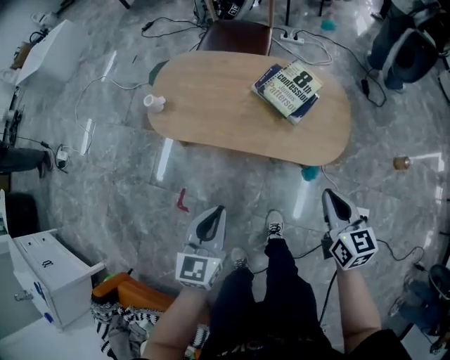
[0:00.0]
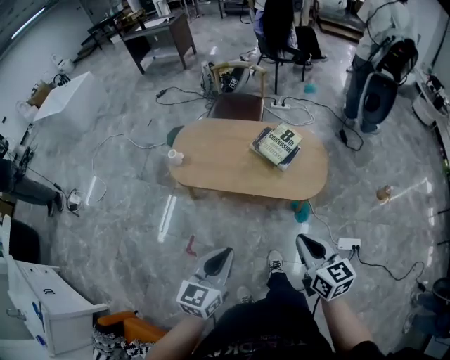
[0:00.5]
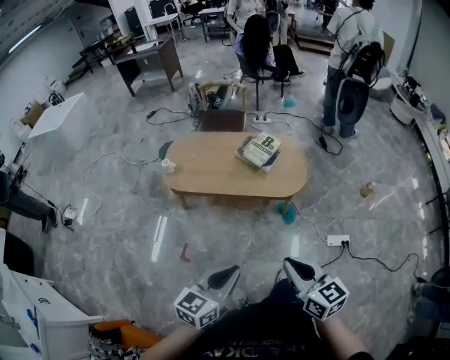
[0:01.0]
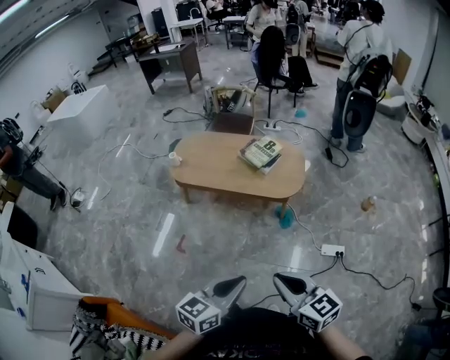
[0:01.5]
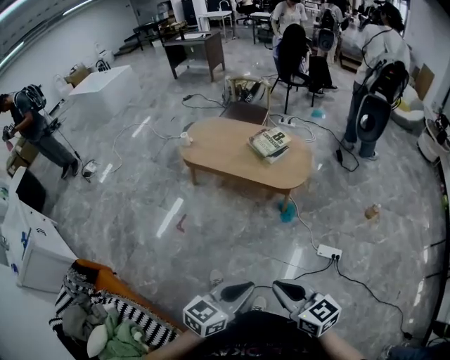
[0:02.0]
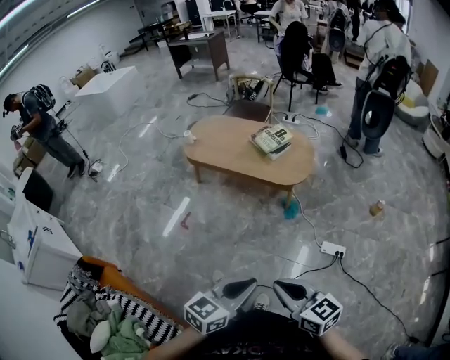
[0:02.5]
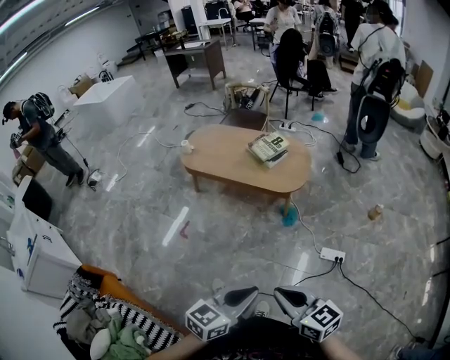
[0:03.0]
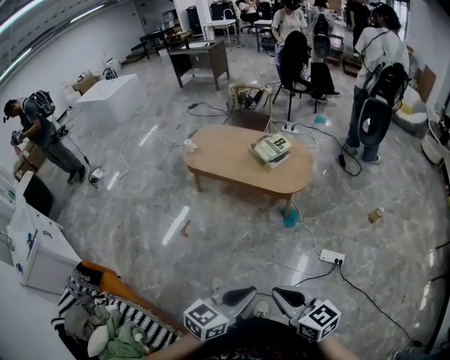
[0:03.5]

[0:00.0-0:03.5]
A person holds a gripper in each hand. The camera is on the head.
0:00.0 to 0:02.0: The pair of grippers is taken backward, approximately 50 cm. The right gripper swivels some 30 degrees. Meanwhile the left gripper rotates roughly 20 degrees.
0:02.0 to 0:03.5: The grippers move only a little.

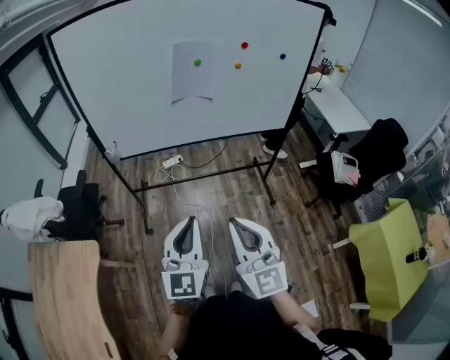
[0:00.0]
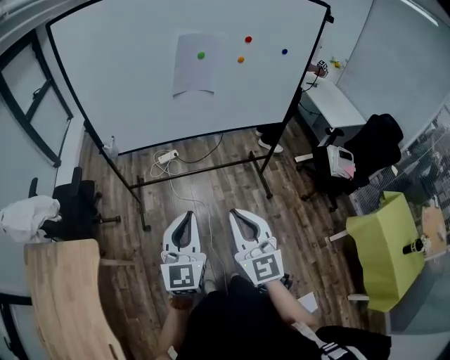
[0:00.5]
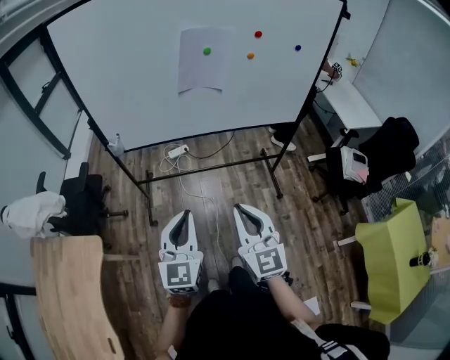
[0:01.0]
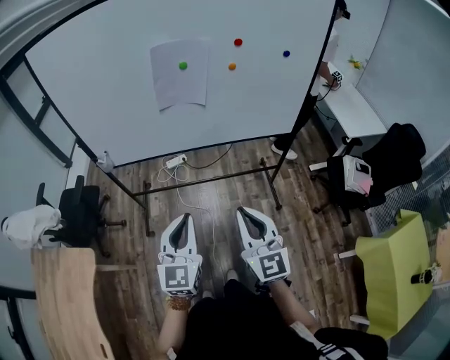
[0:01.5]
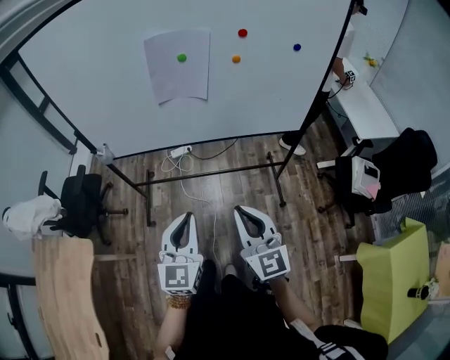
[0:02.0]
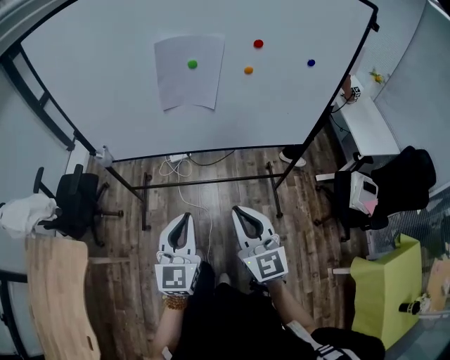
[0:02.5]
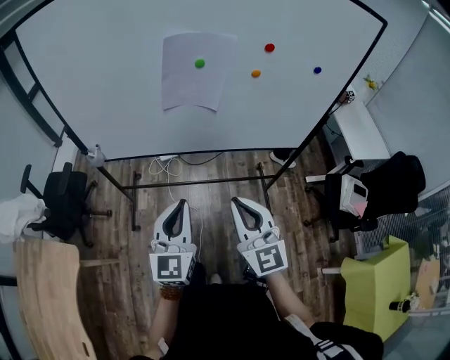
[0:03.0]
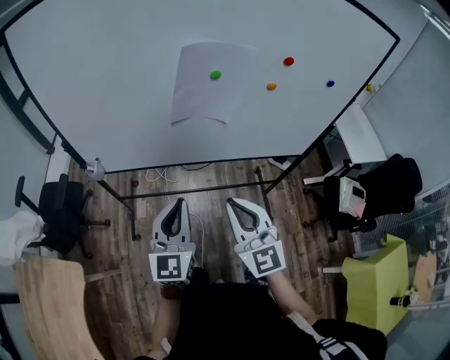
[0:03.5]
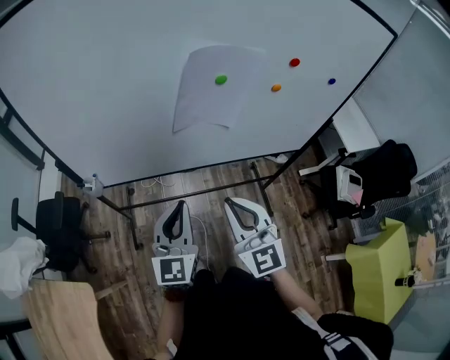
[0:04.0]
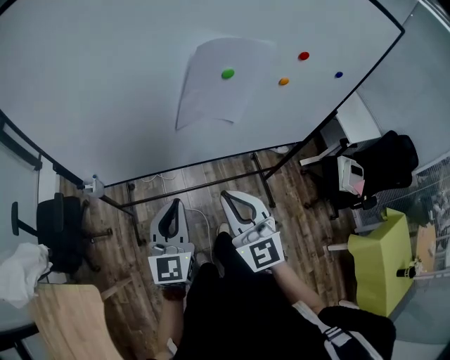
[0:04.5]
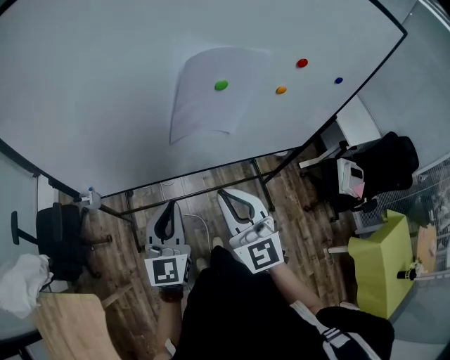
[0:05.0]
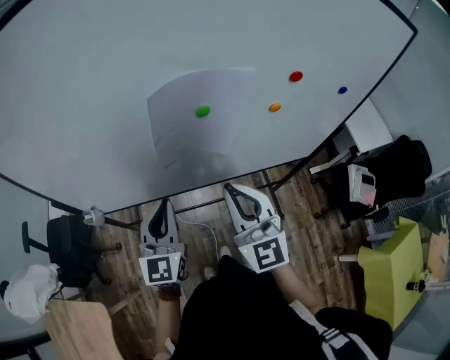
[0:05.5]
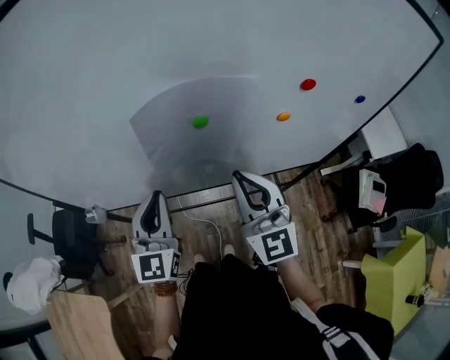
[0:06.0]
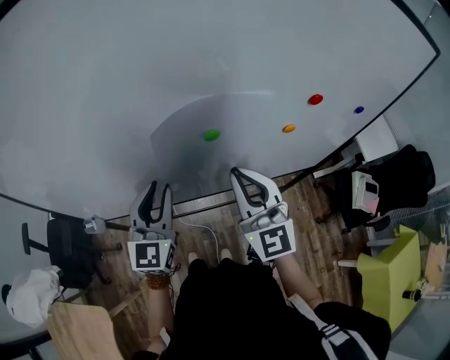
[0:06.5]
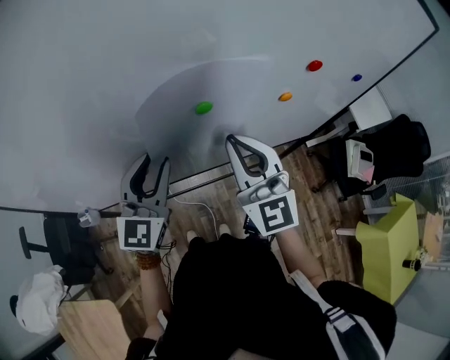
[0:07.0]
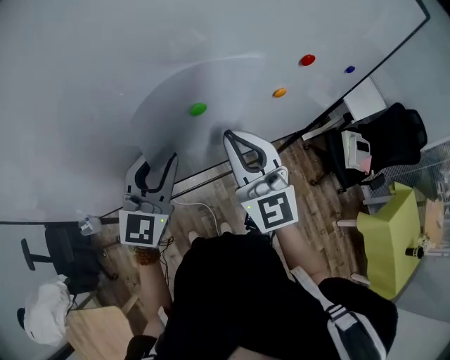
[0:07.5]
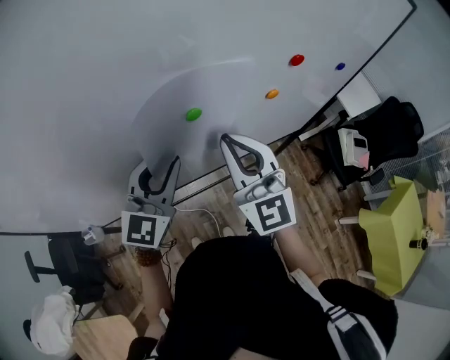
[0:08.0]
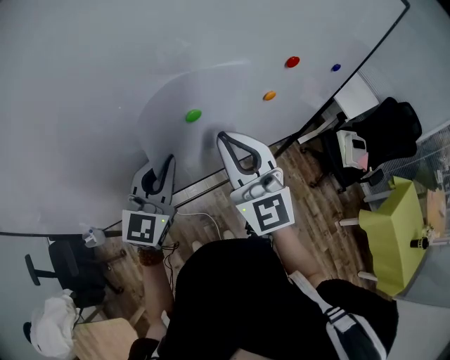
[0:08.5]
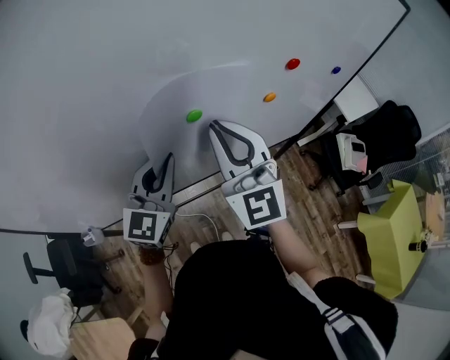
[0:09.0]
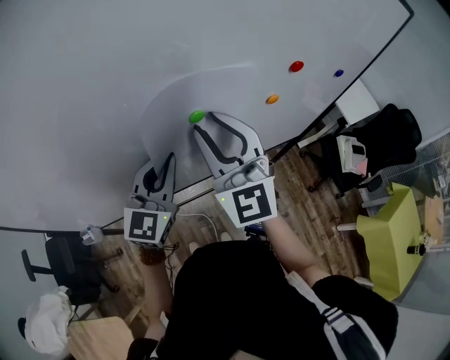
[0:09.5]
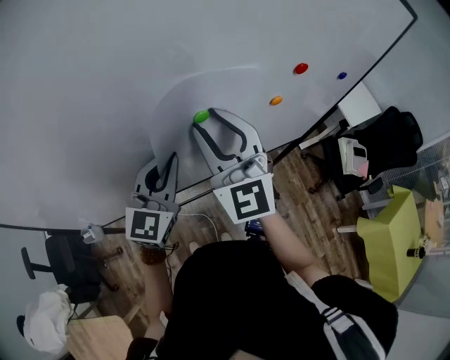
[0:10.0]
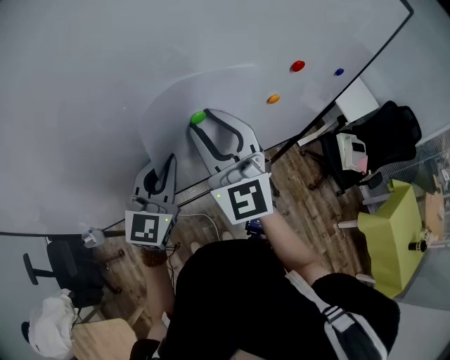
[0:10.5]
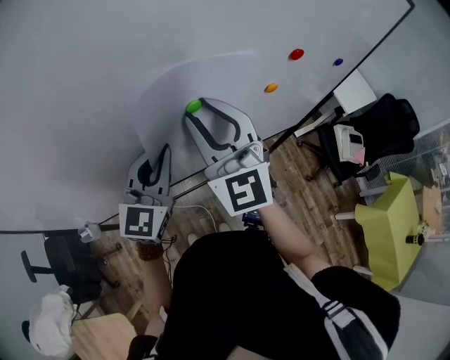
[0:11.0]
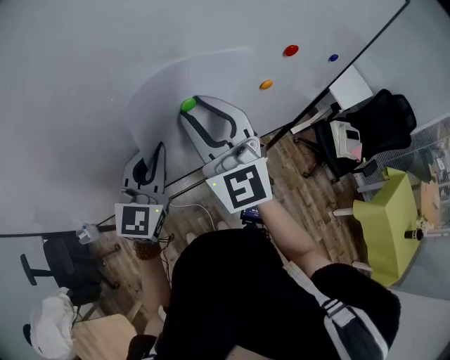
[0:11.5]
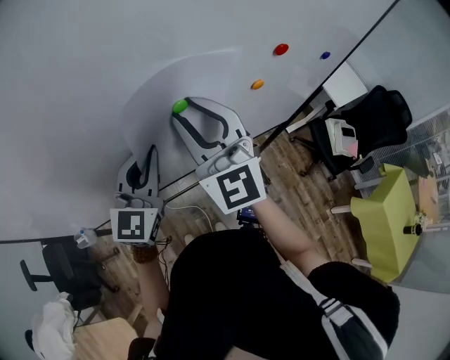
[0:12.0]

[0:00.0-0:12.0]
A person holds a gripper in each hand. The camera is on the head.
0:00.0 to 0:02.0: The grippers both shift forward, to the right and downward by roughly 20 cm.
0:02.0 to 0:04.0: The grippers both shift forward and to the left by some 25 cm. The right gripper swivels about 20 degrees.
0:04.0 to 0:06.0: The right gripper goes roughly 20 cm forward and to the right. The left gripper heads forward, covering approximately 15 cm.
0:06.0 to 0:08.0: The left gripper heads forward and to the right, covering some 10 cm, rotates roughly 30 degrees, and opens its fingers, while the right gripper changes place by roughly 5 cm.
0:08.0 to 0:10.0: The right gripper shifts by roughly 5 cm, and opens up; the left gripper closes.
0:10.0 to 0:12.0: Both grippers stay about where they are.

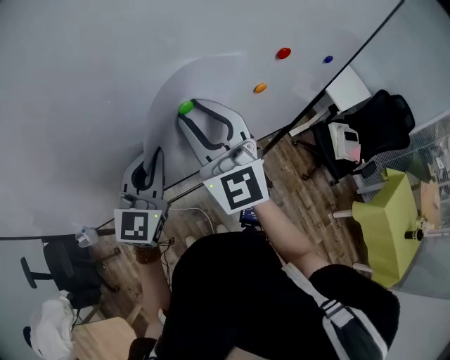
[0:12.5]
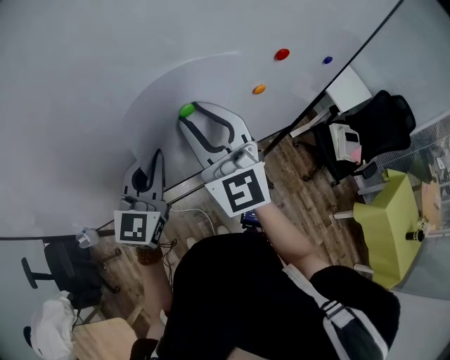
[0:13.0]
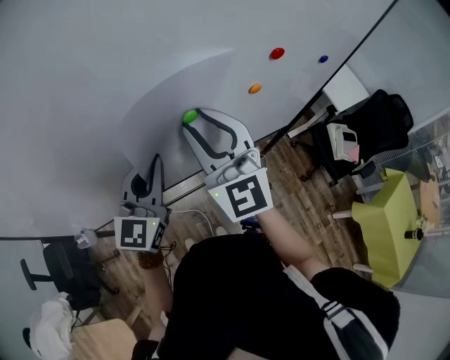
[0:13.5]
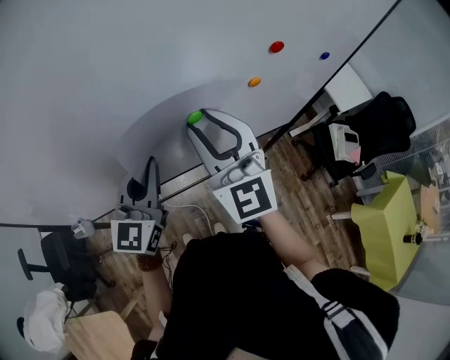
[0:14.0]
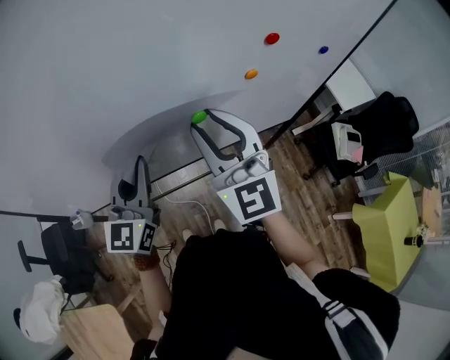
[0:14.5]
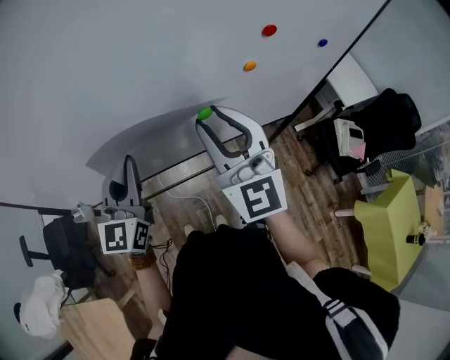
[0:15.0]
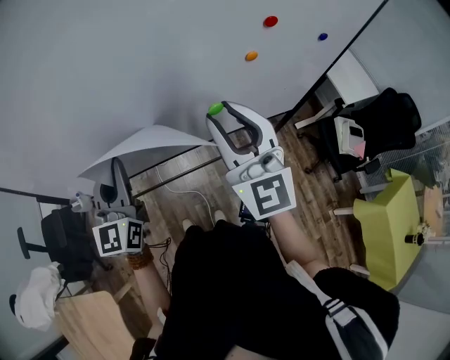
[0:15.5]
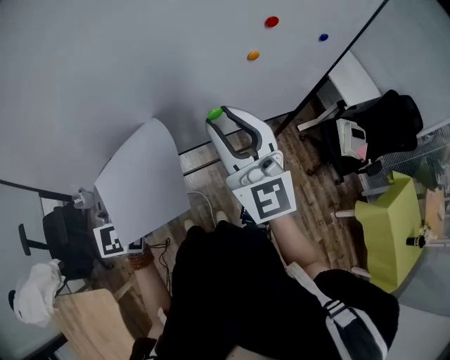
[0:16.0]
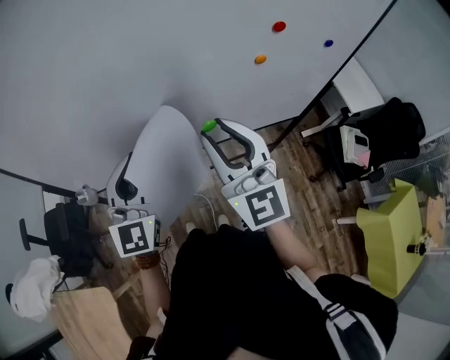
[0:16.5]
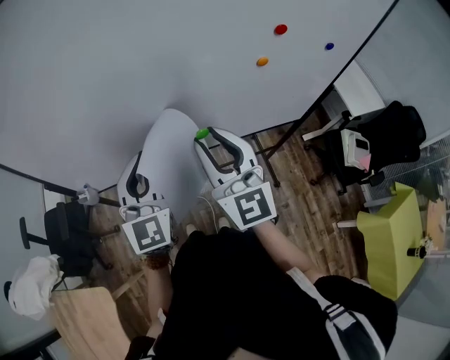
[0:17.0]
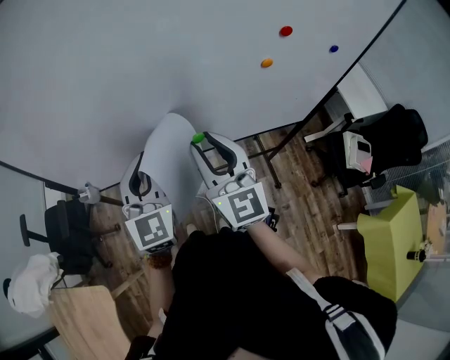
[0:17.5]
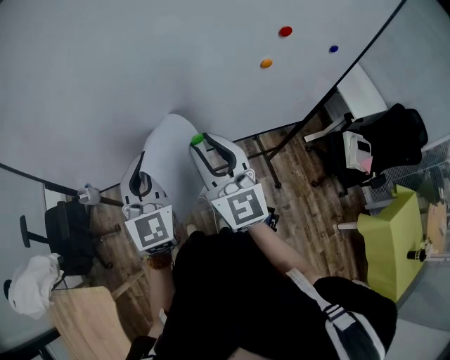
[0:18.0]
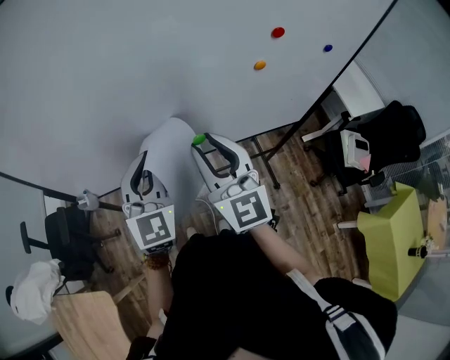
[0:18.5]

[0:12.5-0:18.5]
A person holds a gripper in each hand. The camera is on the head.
0:12.5 to 0:14.5: Both grippers travel together backward, approximately 5 cm.
0:14.5 to 0:16.5: Both grippers move backward, roughly 5 cm.

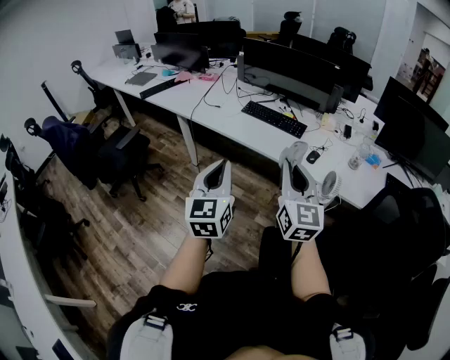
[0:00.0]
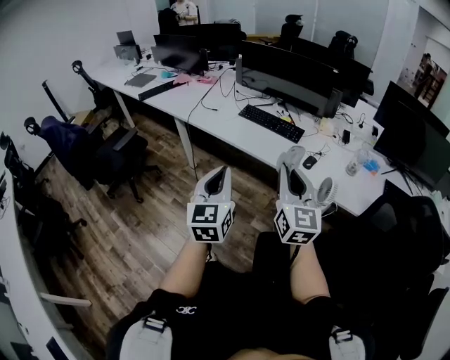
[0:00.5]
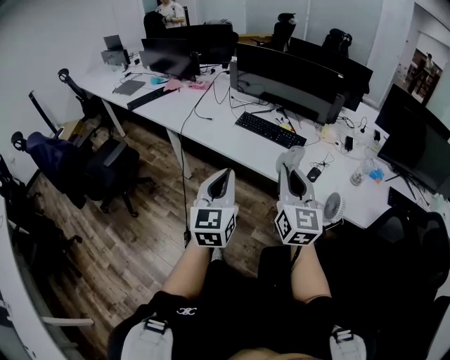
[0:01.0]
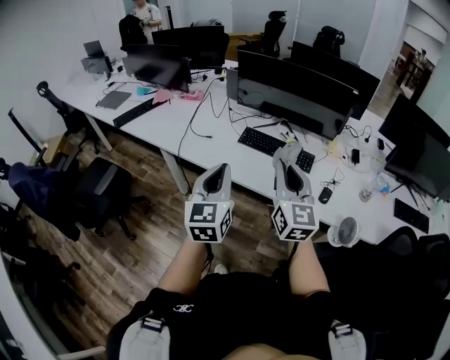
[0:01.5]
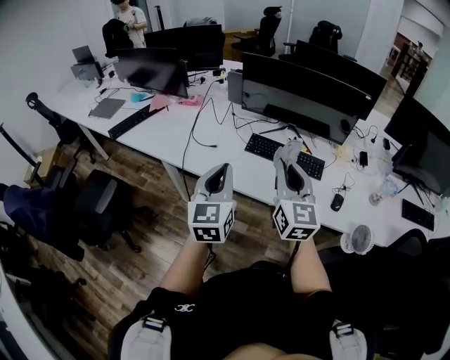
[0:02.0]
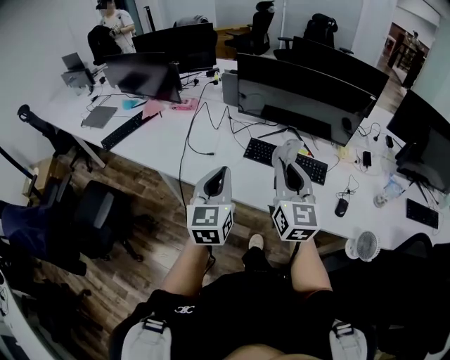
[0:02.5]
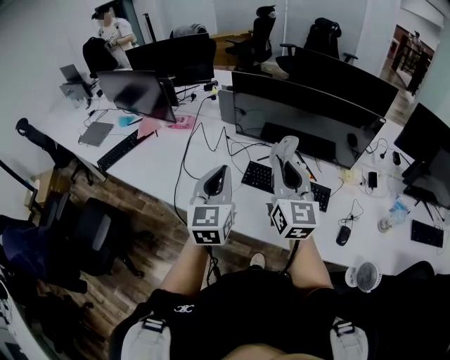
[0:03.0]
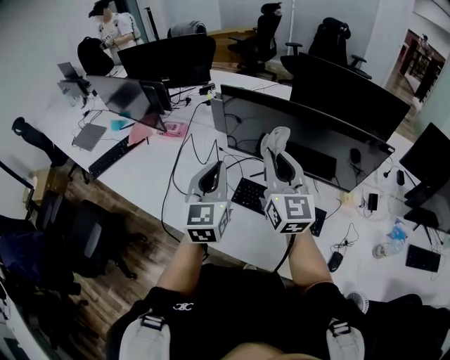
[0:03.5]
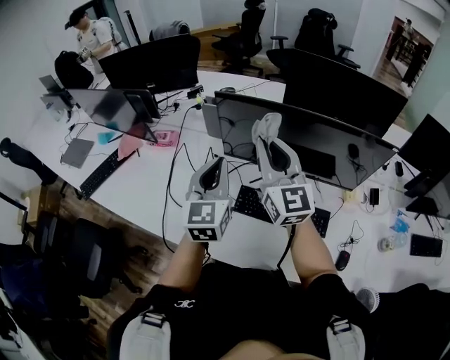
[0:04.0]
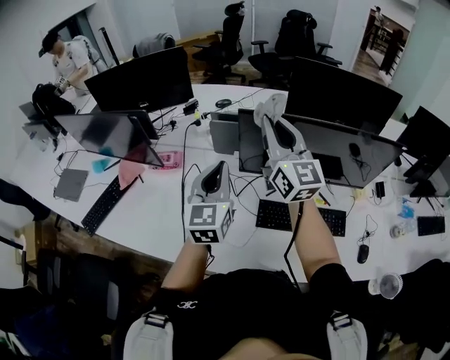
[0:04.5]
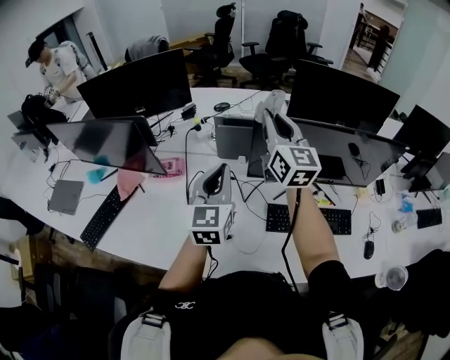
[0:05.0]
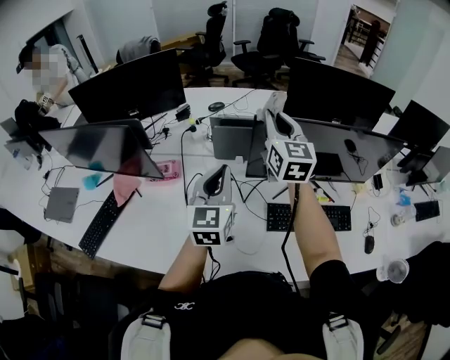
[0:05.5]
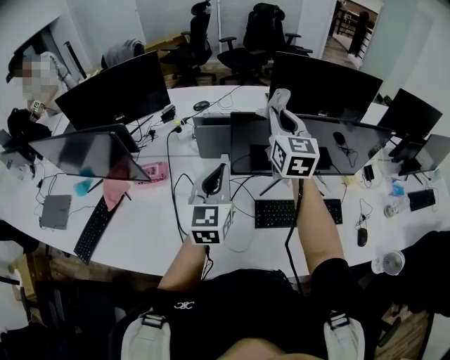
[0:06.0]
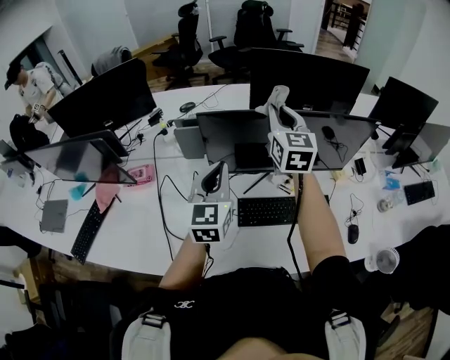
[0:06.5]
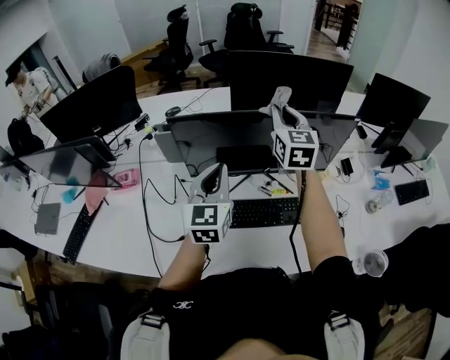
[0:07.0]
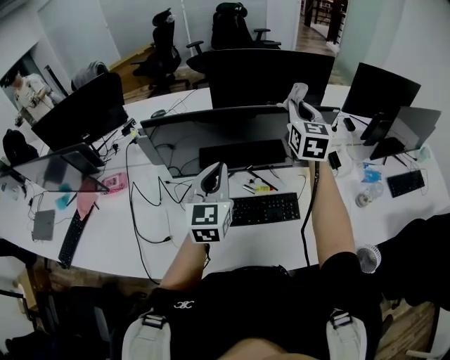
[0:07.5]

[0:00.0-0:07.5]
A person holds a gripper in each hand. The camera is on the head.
0:00.0 to 0:02.0: The left gripper moves forward, about 35 cm. Meanwhile the right gripper is displaced forward and to the left by approximately 40 cm.
0:02.0 to 0:04.0: The two grippers go about 35 cm forward.
0:04.0 to 0:05.5: The right gripper travels forward and to the left by roughly 20 cm, and rotates about 30 degrees, while the left gripper goes roughly 15 cm to the left and forward.
0:05.5 to 0:07.5: The two grippers go roughly 35 cm to the right.
